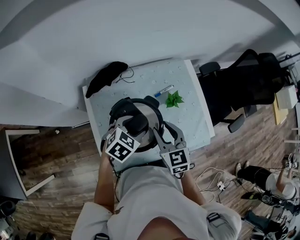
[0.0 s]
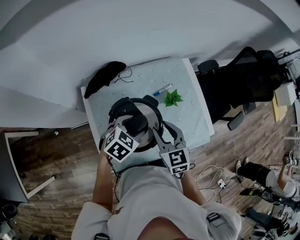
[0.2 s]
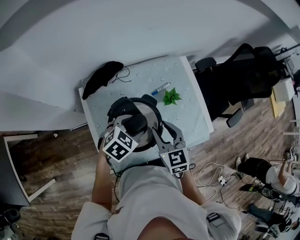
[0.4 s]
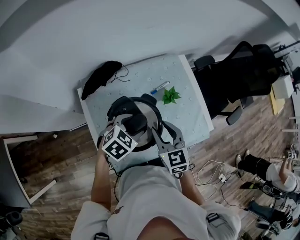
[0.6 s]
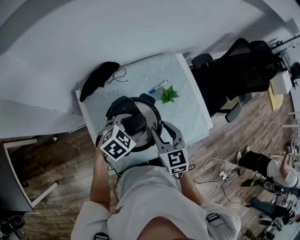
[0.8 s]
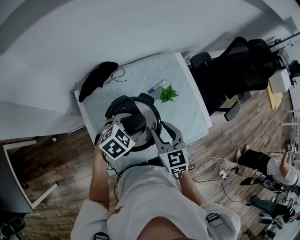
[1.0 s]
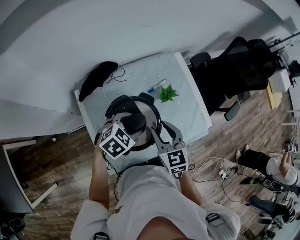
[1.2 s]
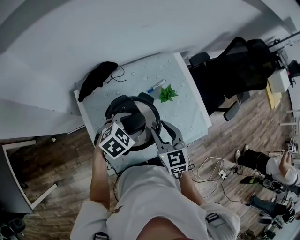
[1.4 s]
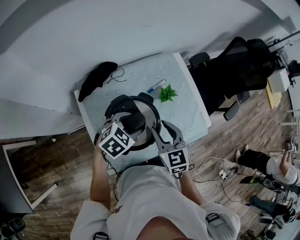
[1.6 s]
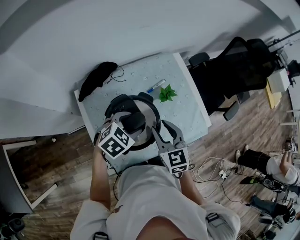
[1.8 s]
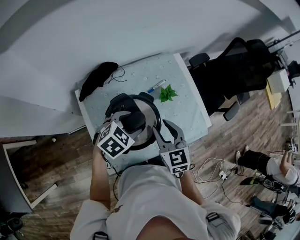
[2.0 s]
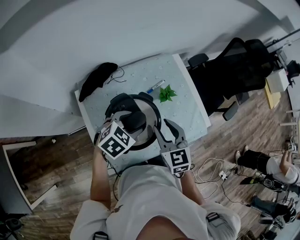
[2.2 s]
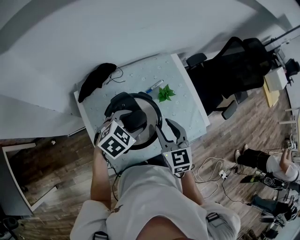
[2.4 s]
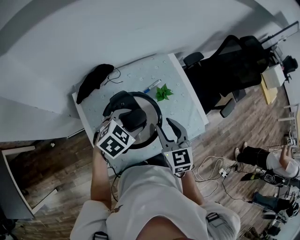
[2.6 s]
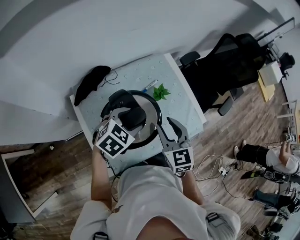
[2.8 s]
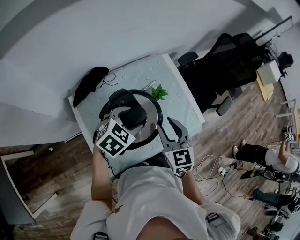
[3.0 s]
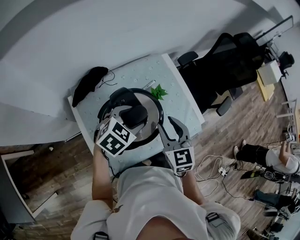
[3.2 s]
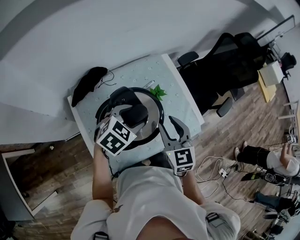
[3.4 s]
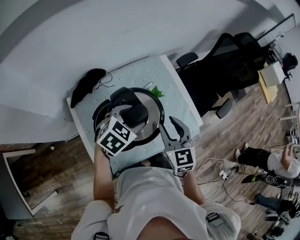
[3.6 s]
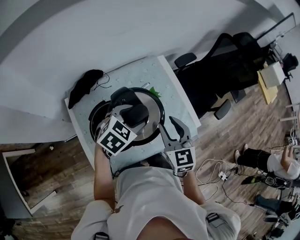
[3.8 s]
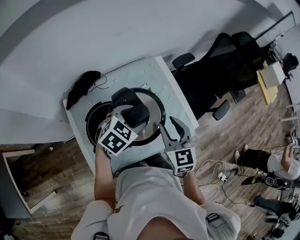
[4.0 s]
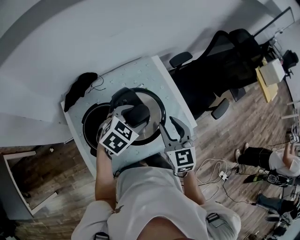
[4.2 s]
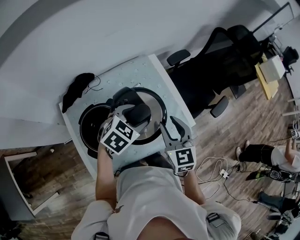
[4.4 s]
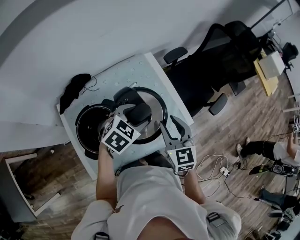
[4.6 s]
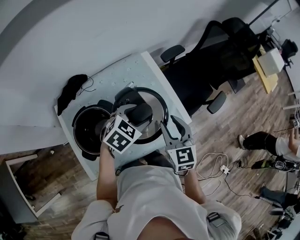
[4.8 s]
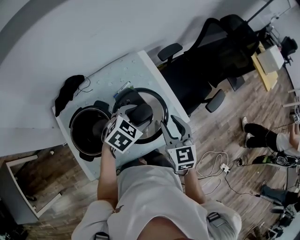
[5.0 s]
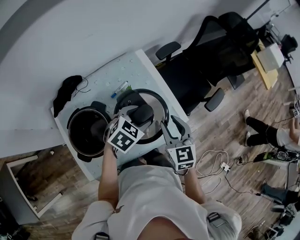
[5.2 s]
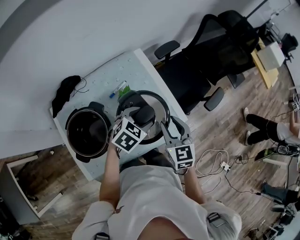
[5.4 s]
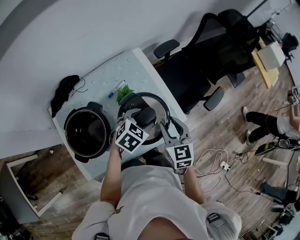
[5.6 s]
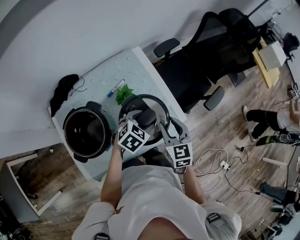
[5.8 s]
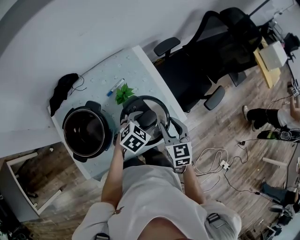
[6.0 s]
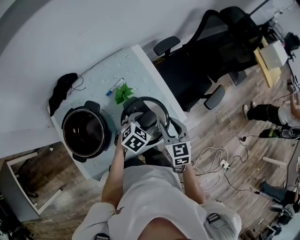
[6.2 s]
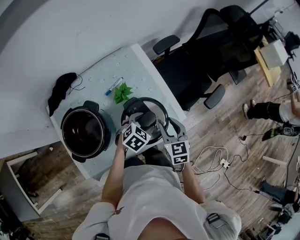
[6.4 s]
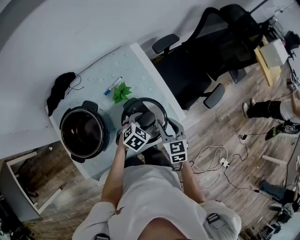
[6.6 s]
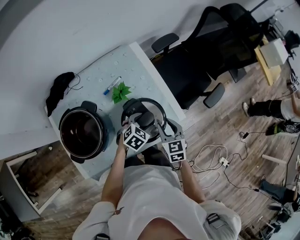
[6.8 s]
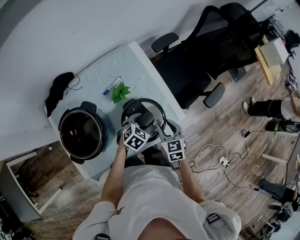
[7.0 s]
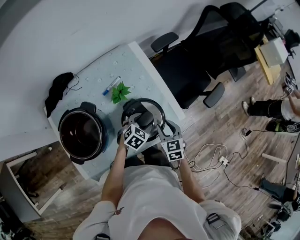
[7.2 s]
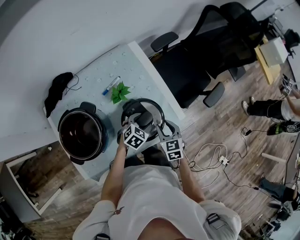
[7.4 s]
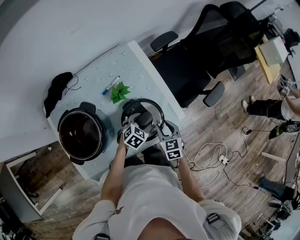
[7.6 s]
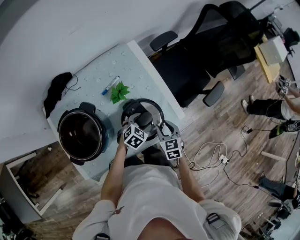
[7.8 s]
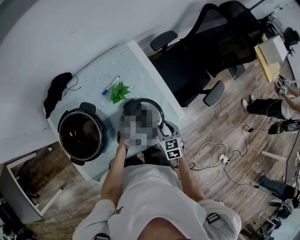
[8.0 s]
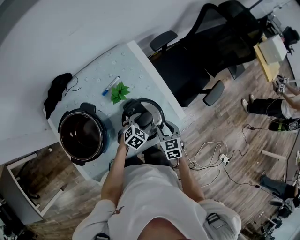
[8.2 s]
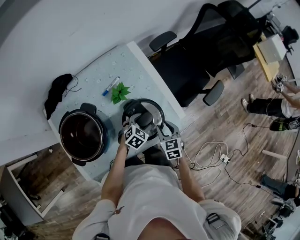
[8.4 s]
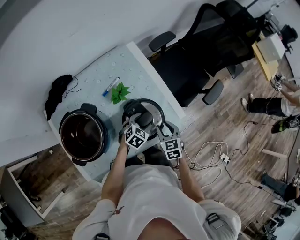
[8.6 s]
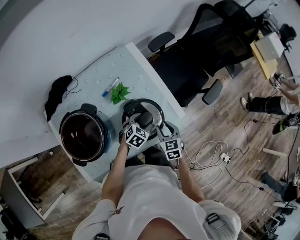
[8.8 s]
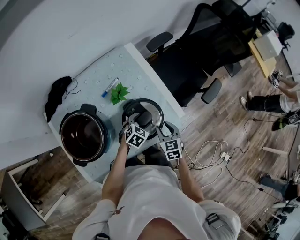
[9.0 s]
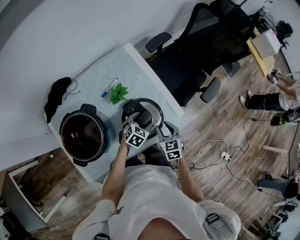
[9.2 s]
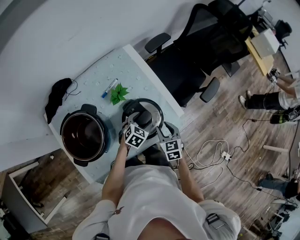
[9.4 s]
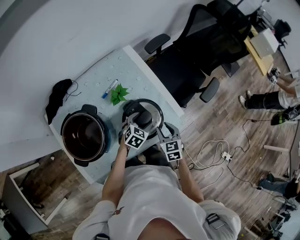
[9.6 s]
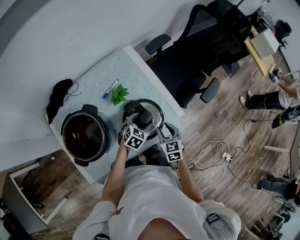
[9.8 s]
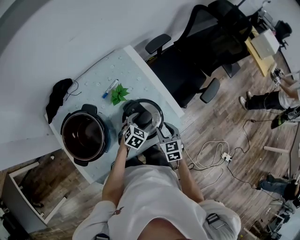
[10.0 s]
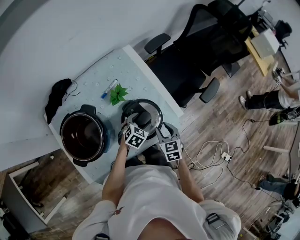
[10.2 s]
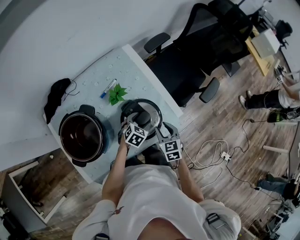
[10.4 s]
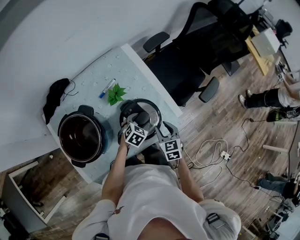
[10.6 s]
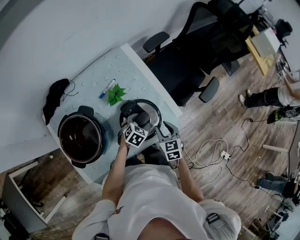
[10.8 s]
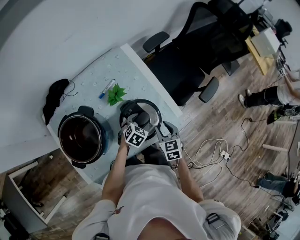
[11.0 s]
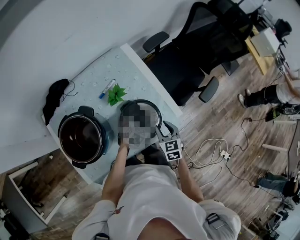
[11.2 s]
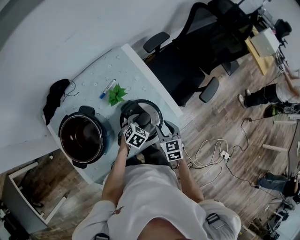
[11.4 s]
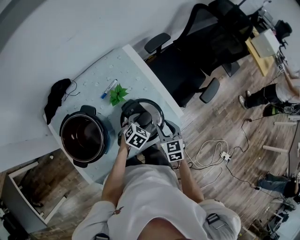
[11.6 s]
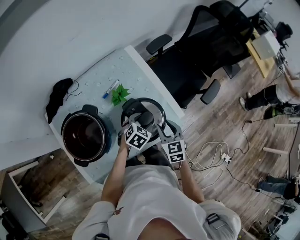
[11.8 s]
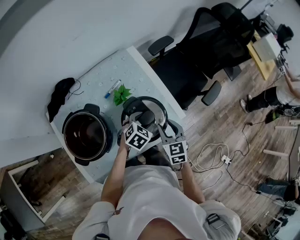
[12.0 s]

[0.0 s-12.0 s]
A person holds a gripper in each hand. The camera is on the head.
0.0 to 1.6 s: There are only small adjustments of the grippers.
1.6 to 3.0 s: The left gripper goes approximately 5 cm upward. The right gripper ends up some 5 cm from where it was.
3.0 to 4.4 s: Both grippers travel together to the right and forward, approximately 15 cm.
4.4 to 6.0 s: Both grippers travel together to the right and downward, approximately 15 cm.
6.0 to 7.6 s: The two grippers go approximately 15 cm downward.
7.6 to 10.4 s: The grippers stay close to where they were, moving slightly.
10.4 to 12.0 s: The two grippers go roughly 10 cm upward.

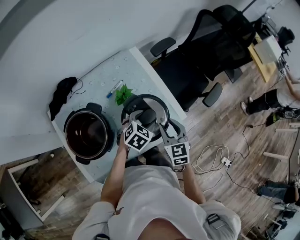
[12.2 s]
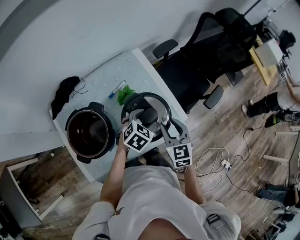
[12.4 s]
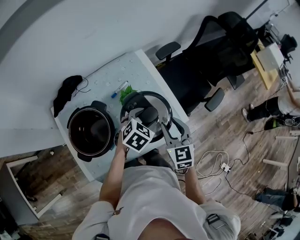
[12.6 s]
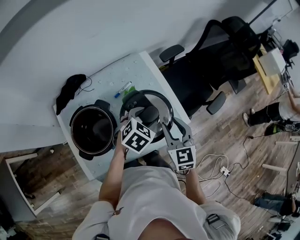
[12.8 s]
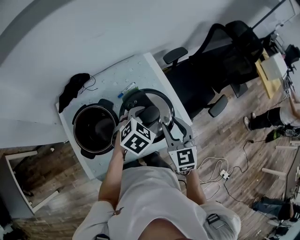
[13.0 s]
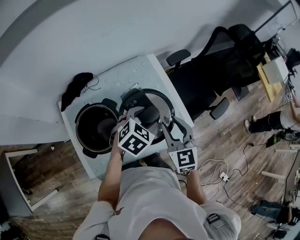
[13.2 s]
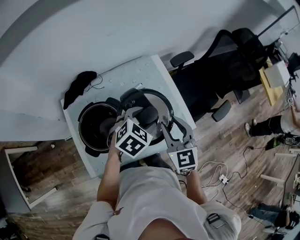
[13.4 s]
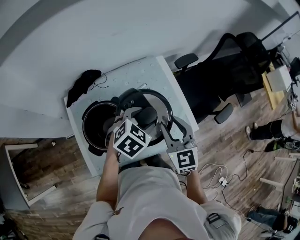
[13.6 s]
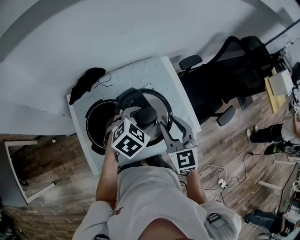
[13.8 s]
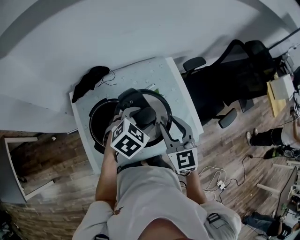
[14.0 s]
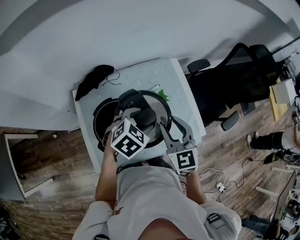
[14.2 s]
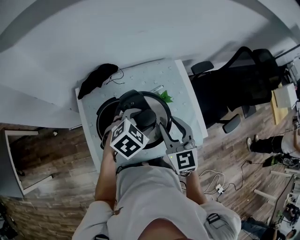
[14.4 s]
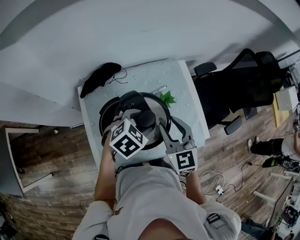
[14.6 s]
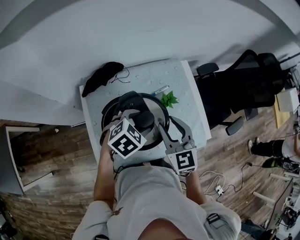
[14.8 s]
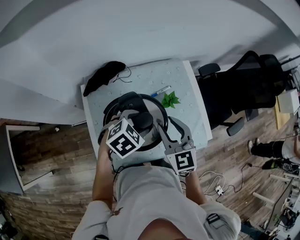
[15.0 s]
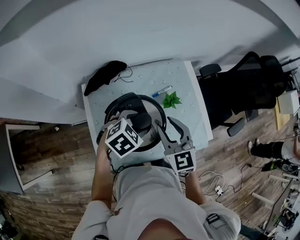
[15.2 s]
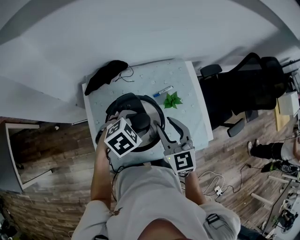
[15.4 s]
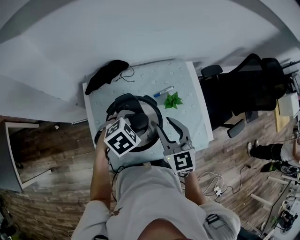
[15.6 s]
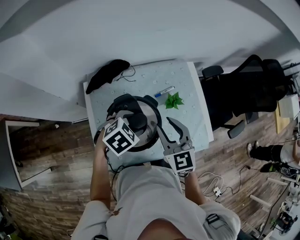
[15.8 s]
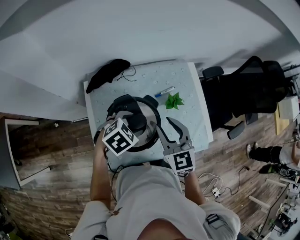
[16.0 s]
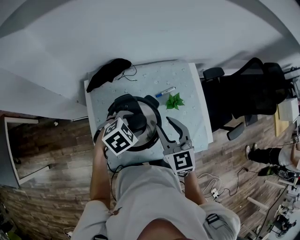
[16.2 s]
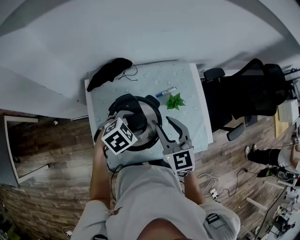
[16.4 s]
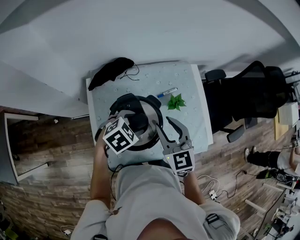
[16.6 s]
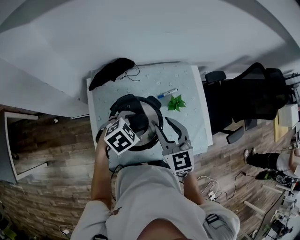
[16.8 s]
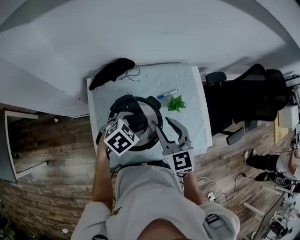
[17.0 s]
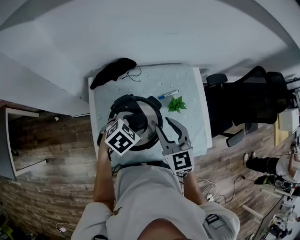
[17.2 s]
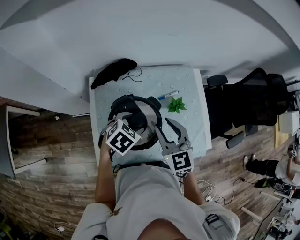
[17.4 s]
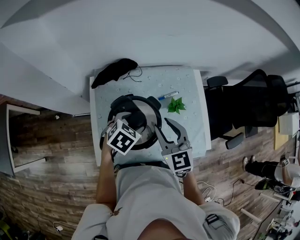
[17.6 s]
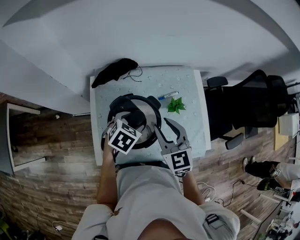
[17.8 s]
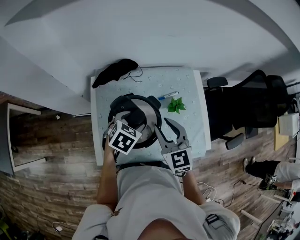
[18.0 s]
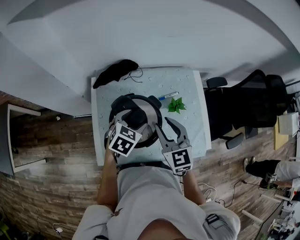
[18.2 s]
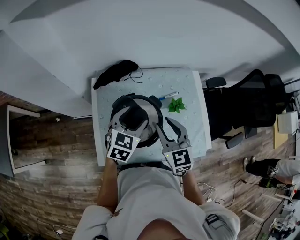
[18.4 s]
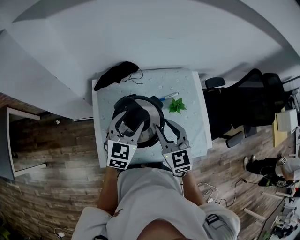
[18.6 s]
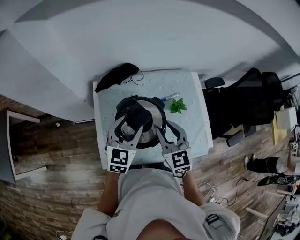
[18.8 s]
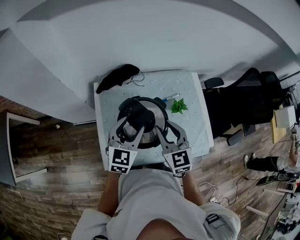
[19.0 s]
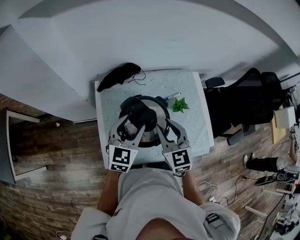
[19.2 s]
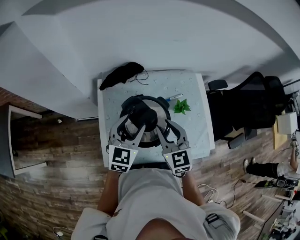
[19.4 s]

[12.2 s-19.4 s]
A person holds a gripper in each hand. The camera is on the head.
12.2 to 13.6 s: The two grippers go some 15 cm upward and to the left. The right gripper rotates approximately 20 degrees.
13.6 to 15.0 s: The grippers both shift to the left by some 15 cm.
15.0 to 16.6 s: The left gripper moves approximately 5 cm.
16.6 to 18.0 s: The left gripper rotates some 30 degrees.
18.0 to 19.4 s: The left gripper moves upward and to the left, some 10 cm, and points its fingers about 40 degrees further upward.

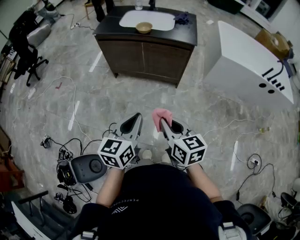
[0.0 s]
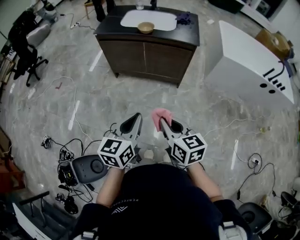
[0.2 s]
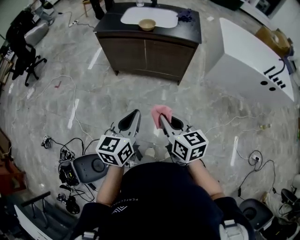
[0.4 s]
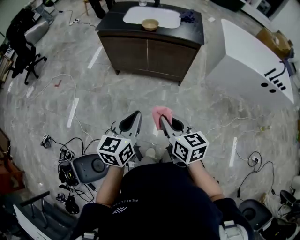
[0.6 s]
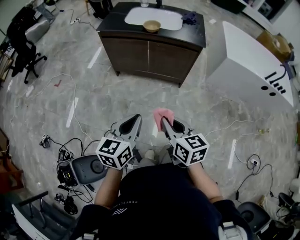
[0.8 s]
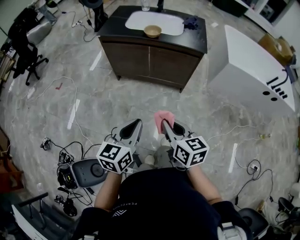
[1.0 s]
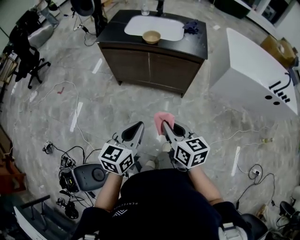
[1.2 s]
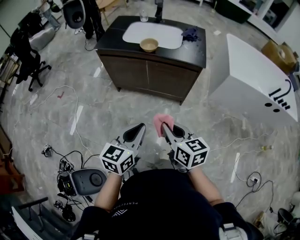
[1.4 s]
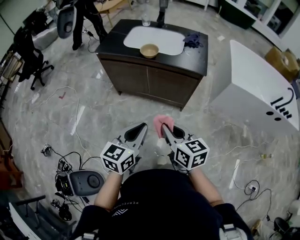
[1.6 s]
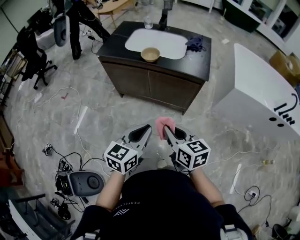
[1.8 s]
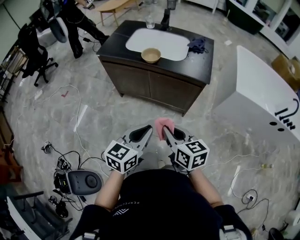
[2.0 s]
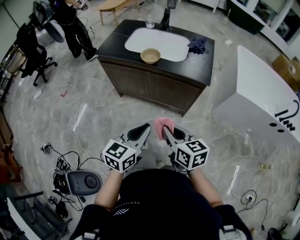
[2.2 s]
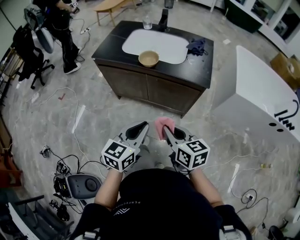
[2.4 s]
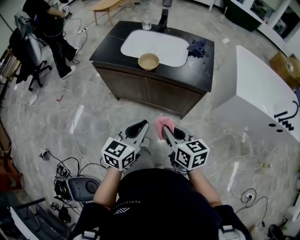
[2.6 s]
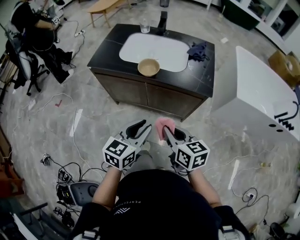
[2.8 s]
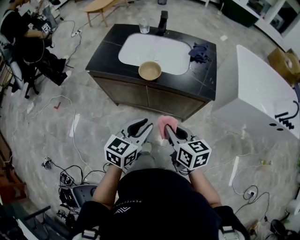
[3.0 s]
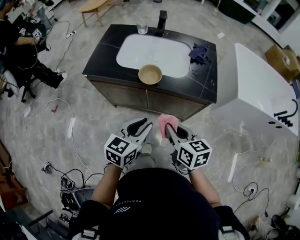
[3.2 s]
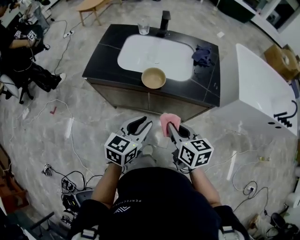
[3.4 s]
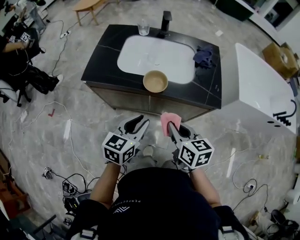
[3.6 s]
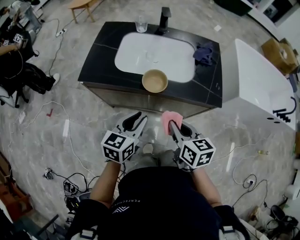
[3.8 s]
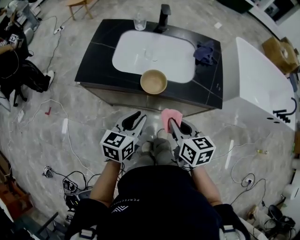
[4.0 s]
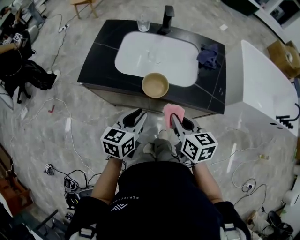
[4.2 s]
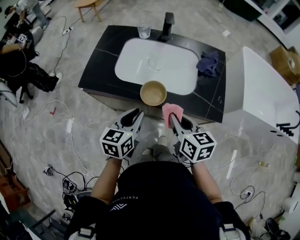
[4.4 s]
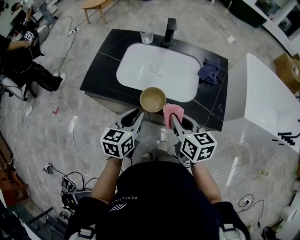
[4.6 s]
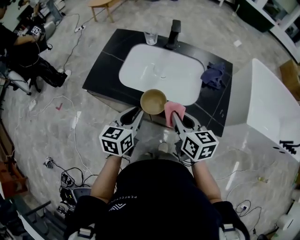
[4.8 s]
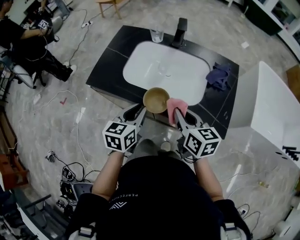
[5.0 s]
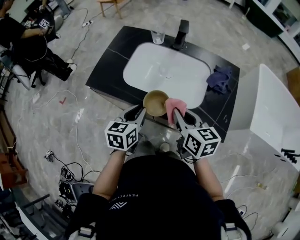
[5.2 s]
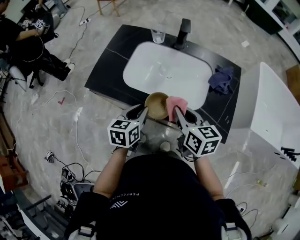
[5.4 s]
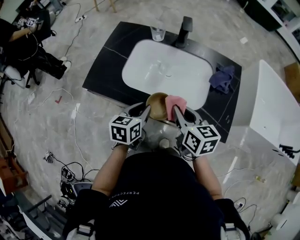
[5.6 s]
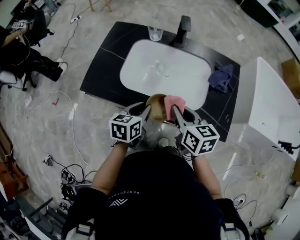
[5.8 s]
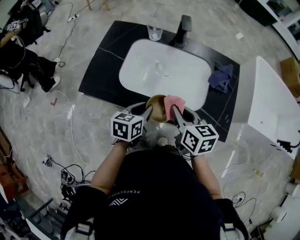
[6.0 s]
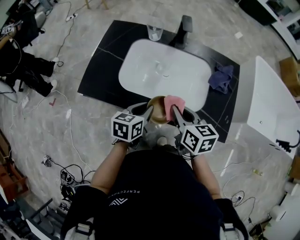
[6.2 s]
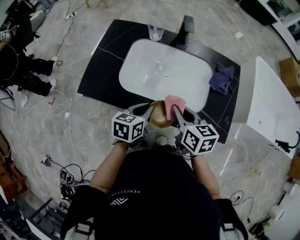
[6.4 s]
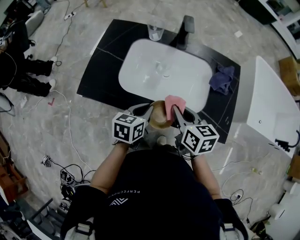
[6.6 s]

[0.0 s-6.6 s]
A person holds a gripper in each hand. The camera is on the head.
0.0 to 1.6 s: Both grippers travel together forward, some 15 cm.
1.6 to 3.2 s: Both grippers move forward, approximately 25 cm. The left gripper opens its fingers.
3.2 to 5.0 s: The two grippers go approximately 20 cm forward. The left gripper changes its angle by about 20 degrees.
5.0 to 6.6 s: The right gripper shifts approximately 5 cm forward; the left gripper moves forward and downward, approximately 10 cm.
